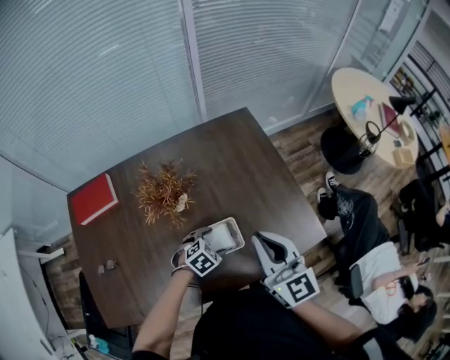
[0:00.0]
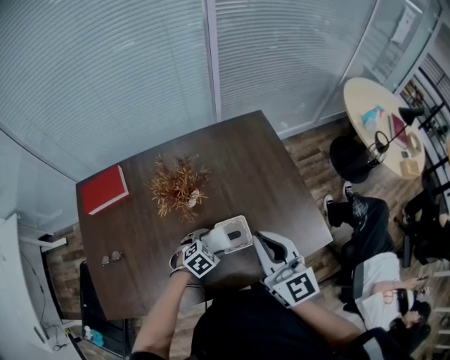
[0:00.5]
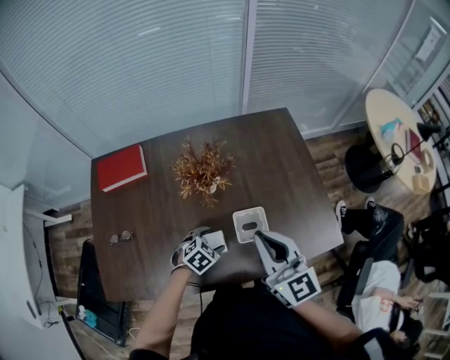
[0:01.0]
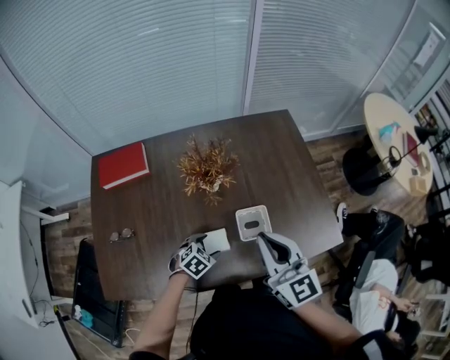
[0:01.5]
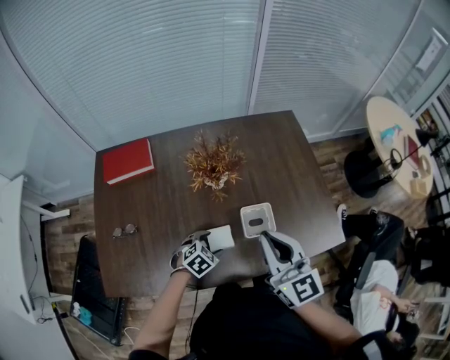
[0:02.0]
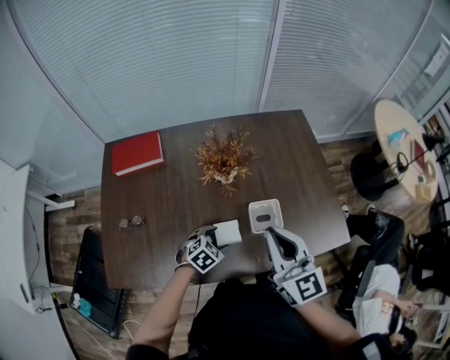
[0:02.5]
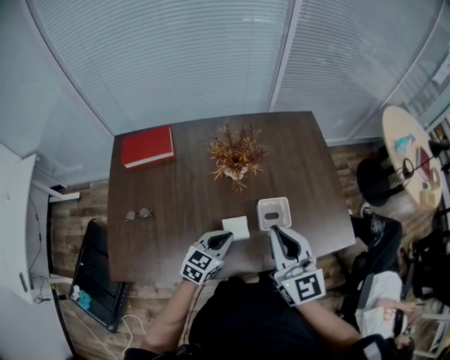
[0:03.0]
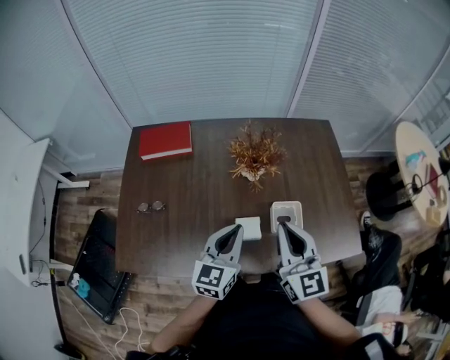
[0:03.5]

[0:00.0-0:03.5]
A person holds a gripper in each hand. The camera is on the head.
0:00.0 to 0:02.0: Both grippers move to the left and backward, some 15 cm.
0:02.0 to 0:03.5: The left gripper goes some 20 cm upward, tilts its fingers roughly 50 degrees upward, and closes up. Meanwhile the right gripper shifts roughly 5 cm to the left.

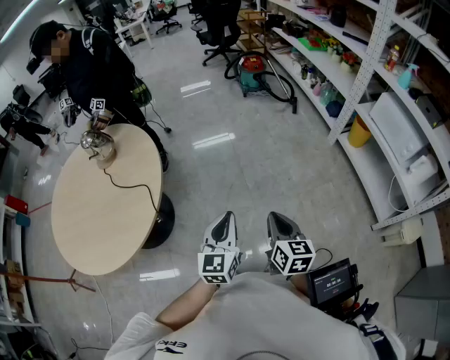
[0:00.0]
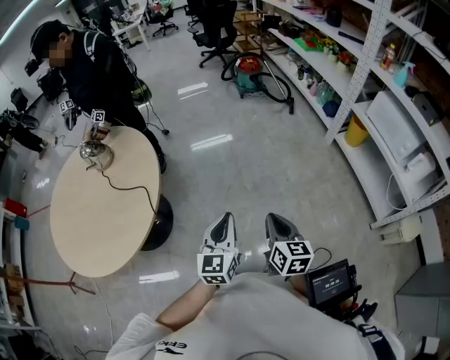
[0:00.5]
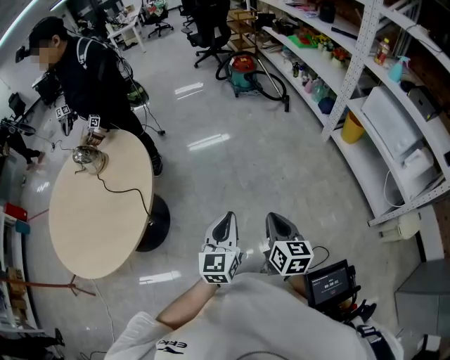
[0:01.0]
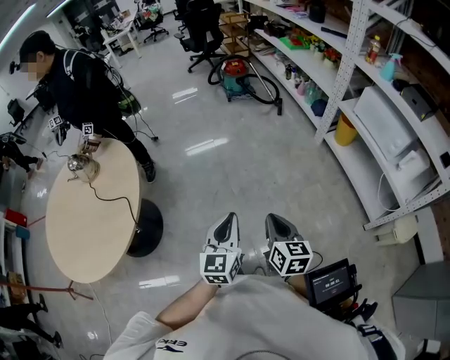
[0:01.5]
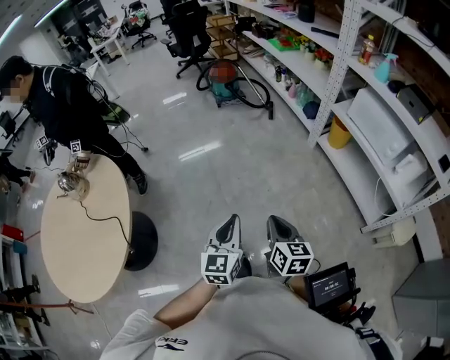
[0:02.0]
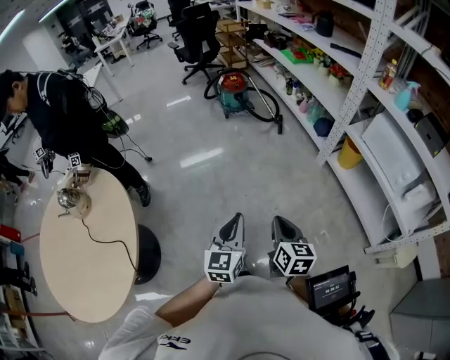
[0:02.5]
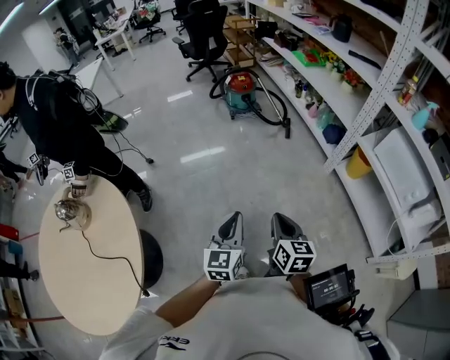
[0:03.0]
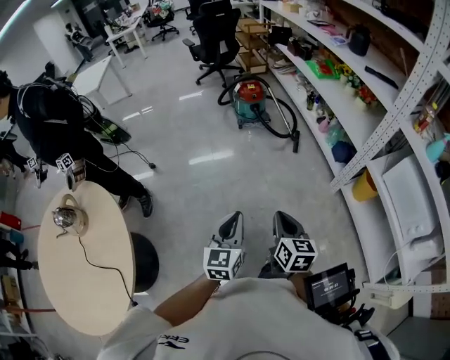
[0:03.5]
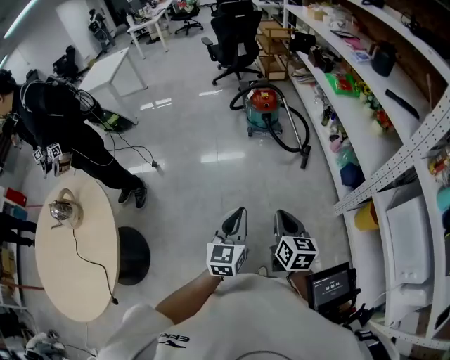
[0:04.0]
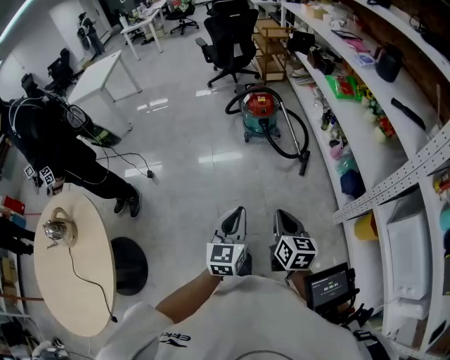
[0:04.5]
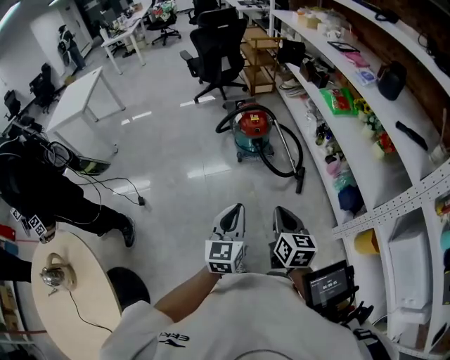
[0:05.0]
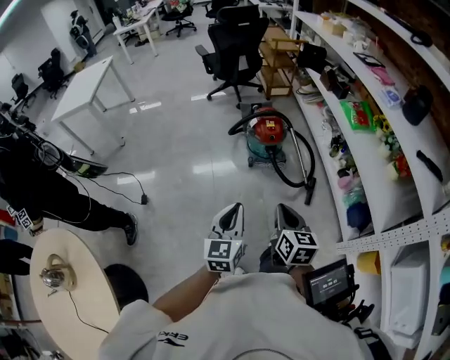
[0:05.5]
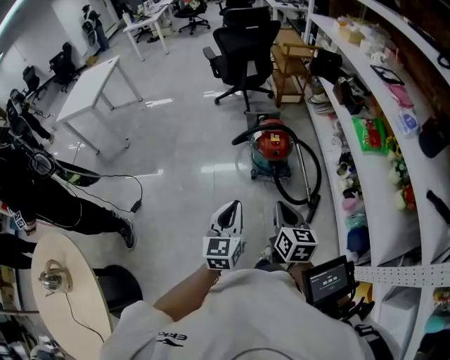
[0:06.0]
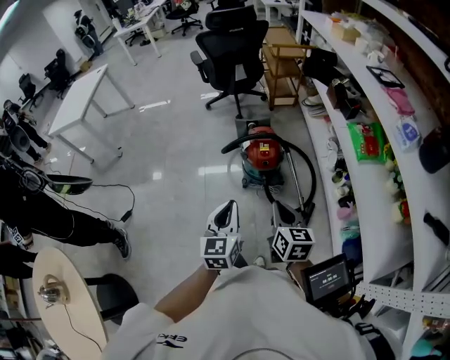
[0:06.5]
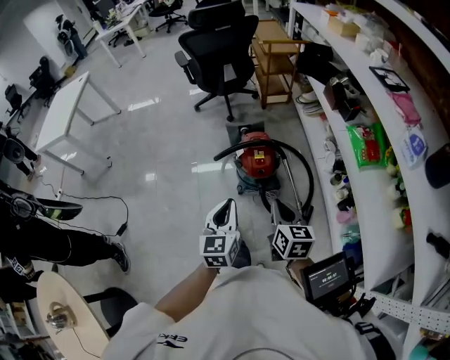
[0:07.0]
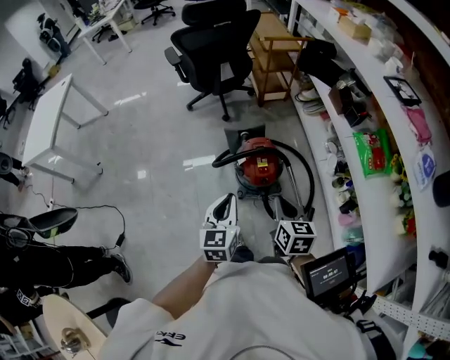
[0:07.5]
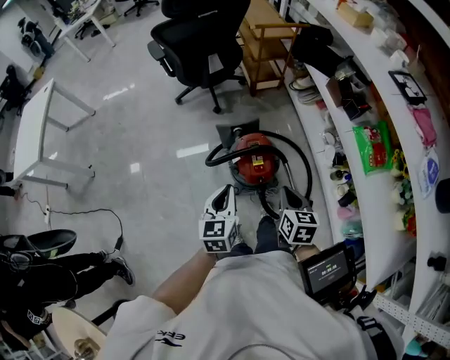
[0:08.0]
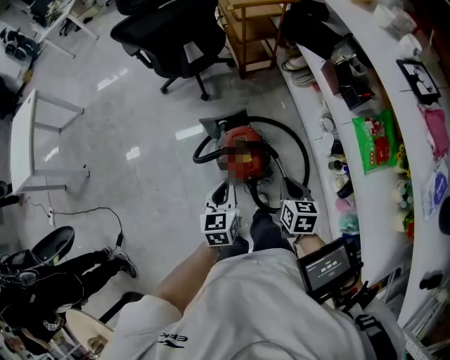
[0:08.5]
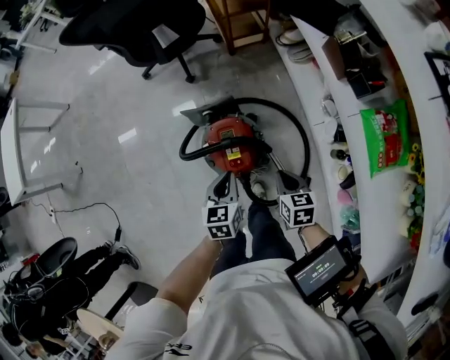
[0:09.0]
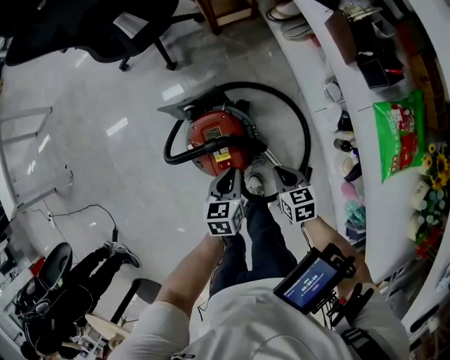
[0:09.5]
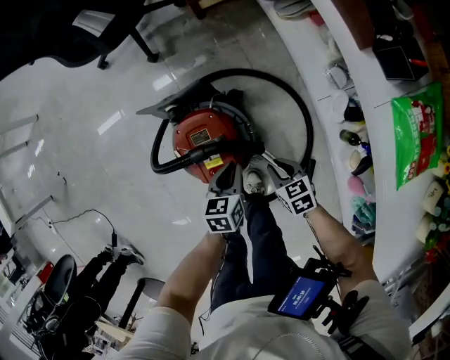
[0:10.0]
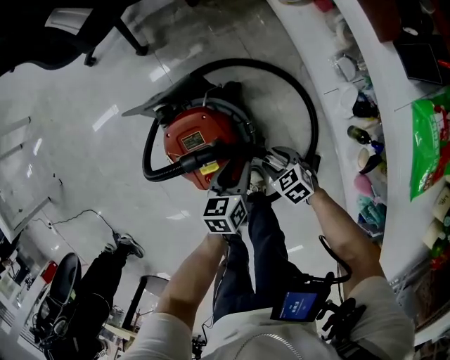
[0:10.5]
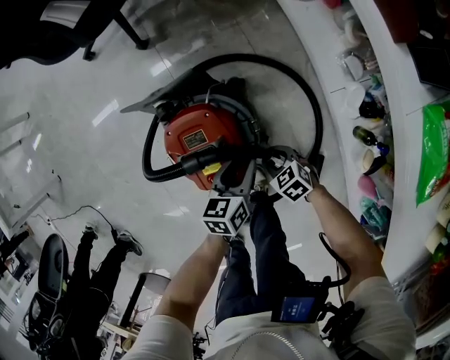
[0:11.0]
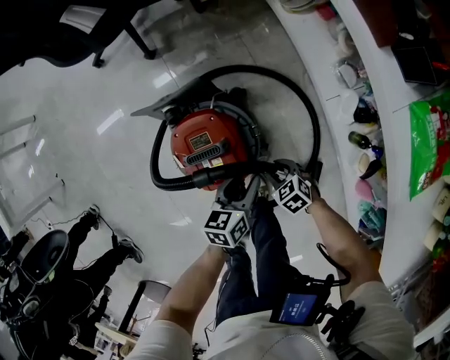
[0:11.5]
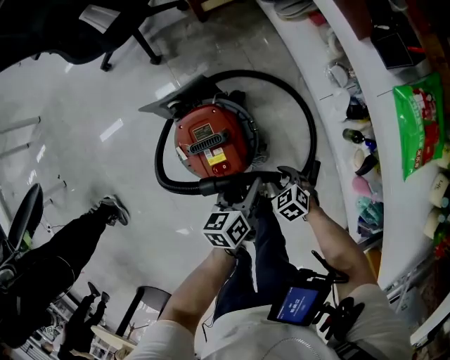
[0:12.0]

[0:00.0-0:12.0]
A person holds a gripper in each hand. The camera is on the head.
0:00.0 to 0:02.0: Both grippers move to the right and forward, approximately 20 cm.
0:02.0 to 0:04.0: The two grippers travel together, forward, roughly 50 cm.
0:04.0 to 0:06.0: The pair of grippers is taken forward, about 50 cm.
0:06.0 to 0:08.0: The pair of grippers is taken forward, some 40 cm.
0:08.0 to 0:10.0: The left gripper travels downward, to the right and forward by about 50 cm, and swivels about 30 degrees, while the right gripper moves downward, some 40 cm, and swivels roughly 30 degrees.
0:10.0 to 0:12.0: The left gripper changes place by some 5 cm, and opens. The right gripper is displaced backward by some 5 cm, swivels roughly 20 degrees, and opens.

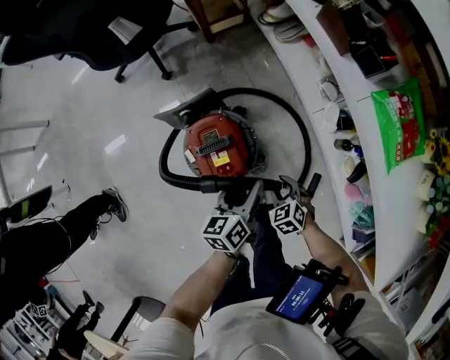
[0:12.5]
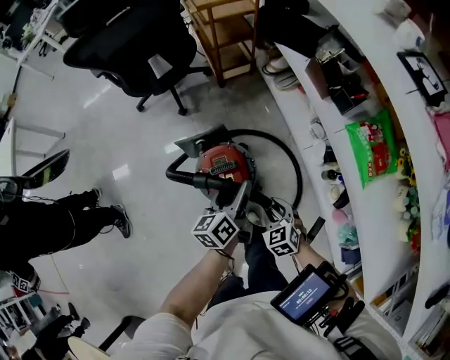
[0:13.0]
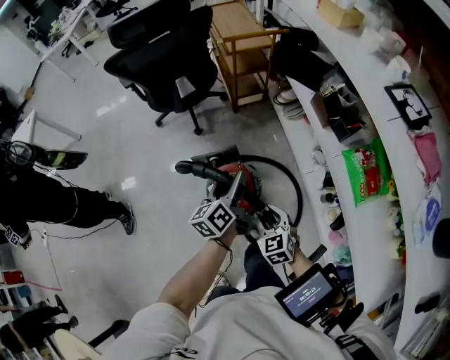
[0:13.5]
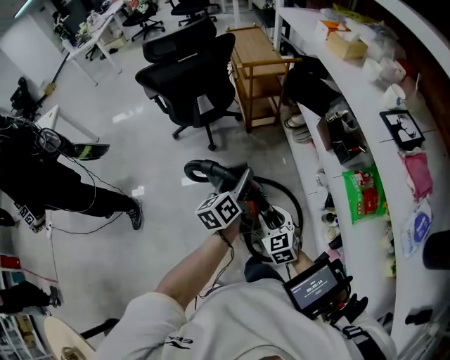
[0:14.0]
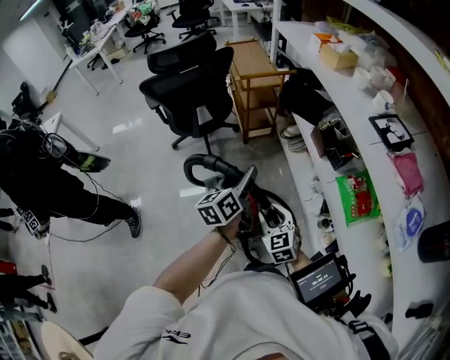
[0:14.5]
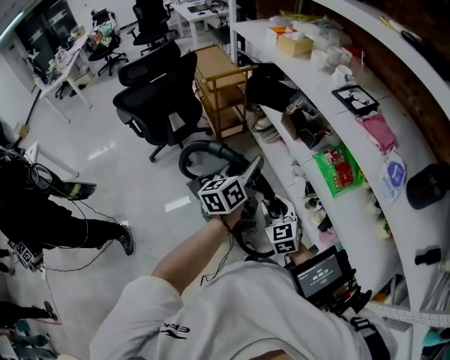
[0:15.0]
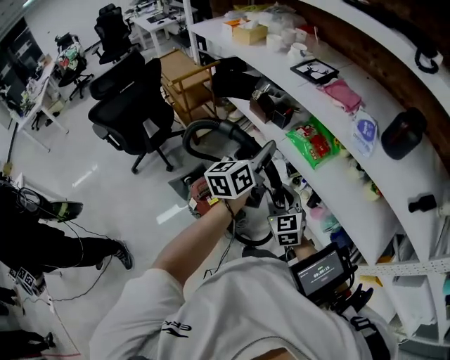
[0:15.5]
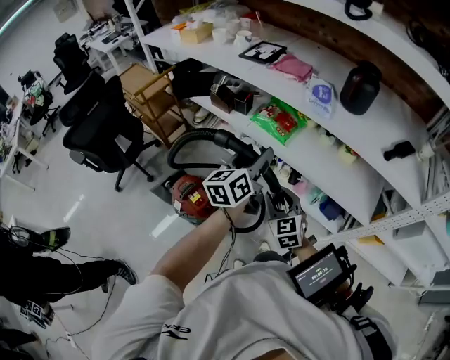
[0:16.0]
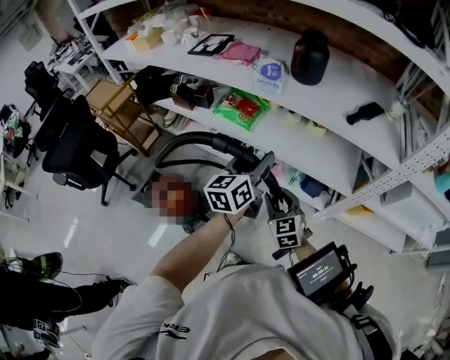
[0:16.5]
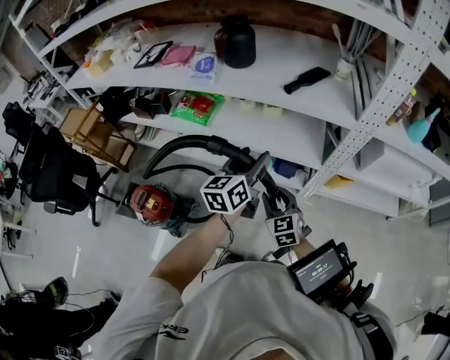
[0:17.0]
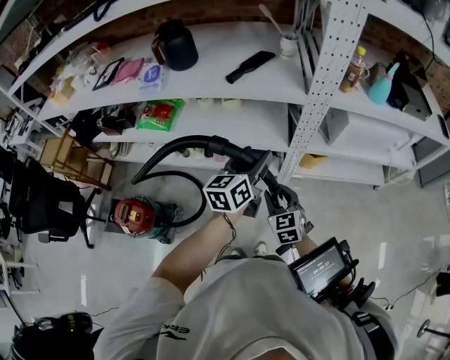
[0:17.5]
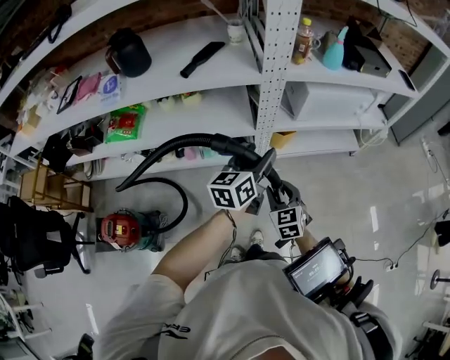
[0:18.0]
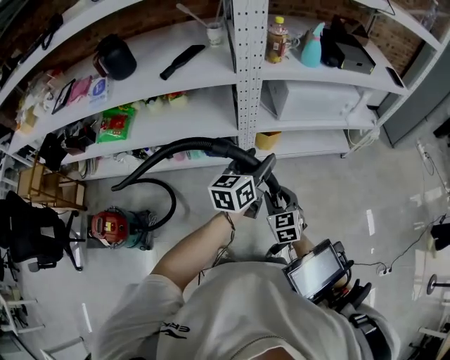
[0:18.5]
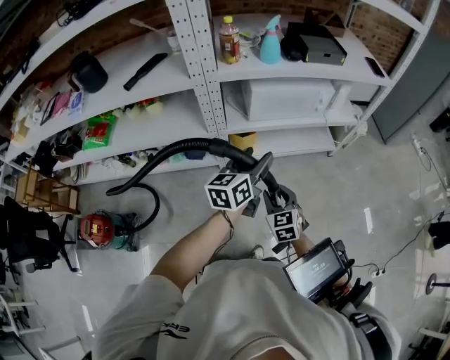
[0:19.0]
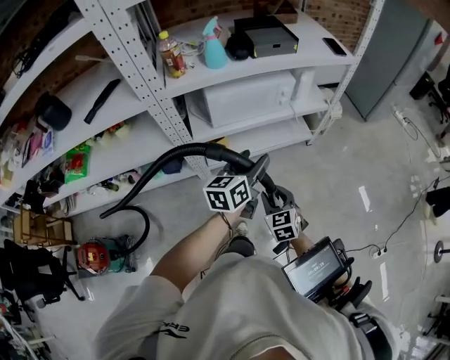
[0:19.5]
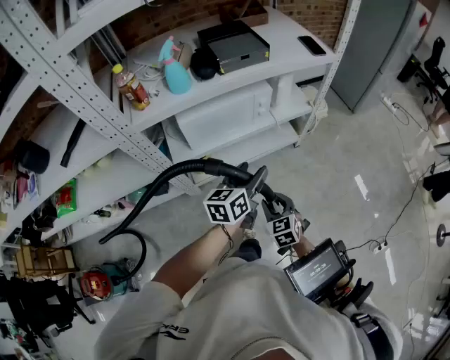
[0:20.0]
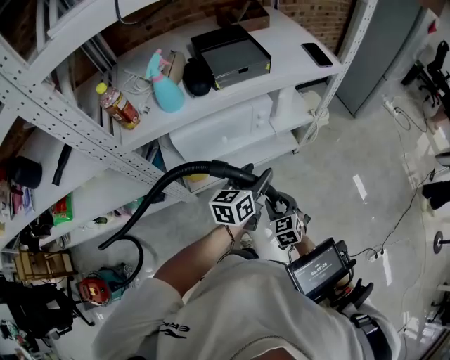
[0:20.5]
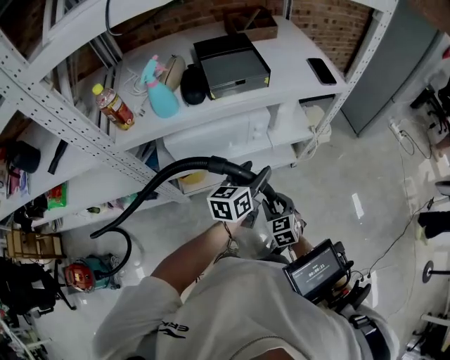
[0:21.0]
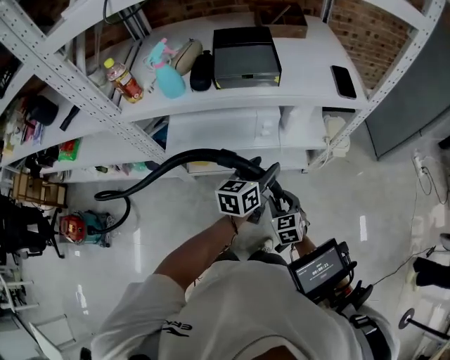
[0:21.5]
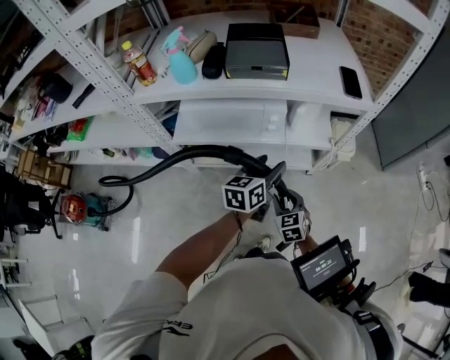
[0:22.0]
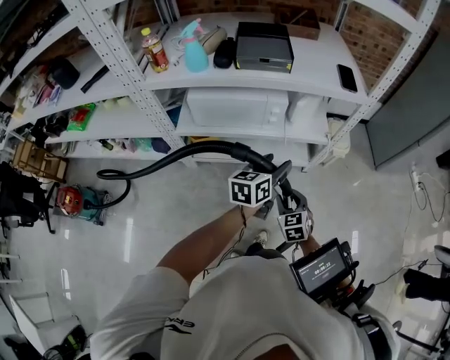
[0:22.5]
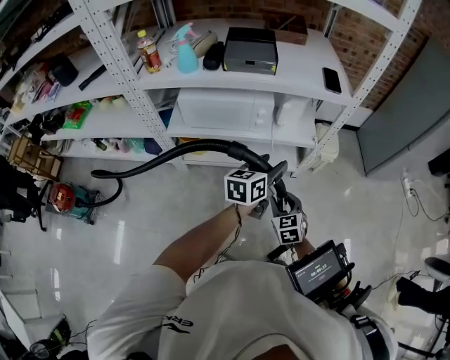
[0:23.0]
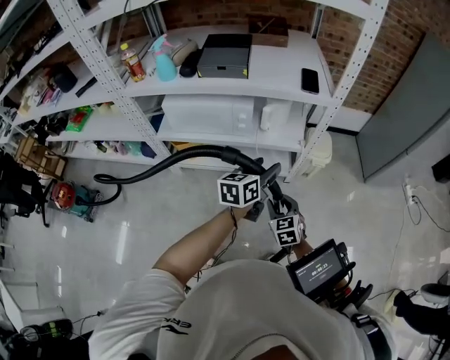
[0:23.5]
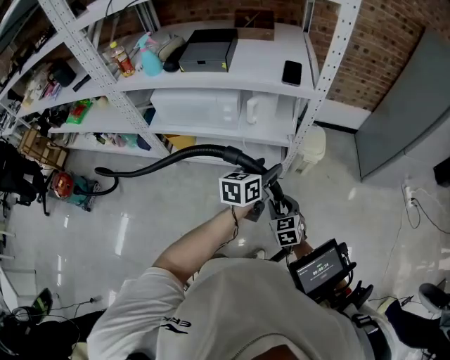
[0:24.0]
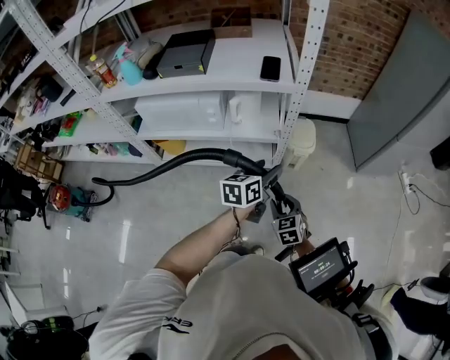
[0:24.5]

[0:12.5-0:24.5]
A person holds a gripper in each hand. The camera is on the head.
0:12.5 to 0:14.5: The grippers both shift upward by approximately 40 cm. The right gripper angles its fingers upward, by approximately 30 degrees, while the left gripper rotates approximately 20 degrees.
0:14.5 to 0:16.5: The pair of grippers is taken about 50 cm. The right gripper rotates some 50 degrees. Meanwhile the left gripper rotates some 60 degrees.
0:16.5 to 0:18.5: The pair of grippers is taken approximately 50 cm. The right gripper swivels roughly 30 degrees; the left gripper rotates roughly 40 degrees.
0:18.5 to 0:20.5: The pair of grippers is taken to the right and forward, about 50 cm.
0:20.5 to 0:22.5: The grippers both shift to the right by some 15 cm.
0:22.5 to 0:24.5: Both grippers travel together to the right, approximately 30 cm.
